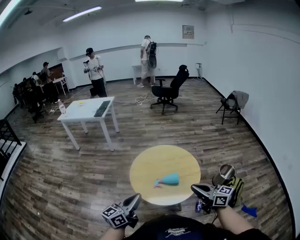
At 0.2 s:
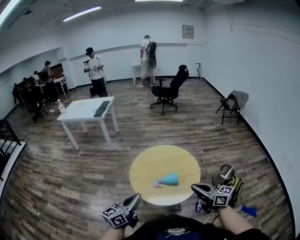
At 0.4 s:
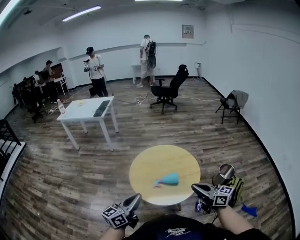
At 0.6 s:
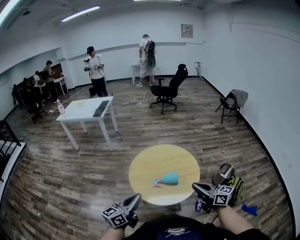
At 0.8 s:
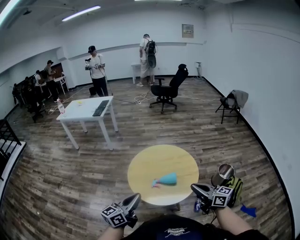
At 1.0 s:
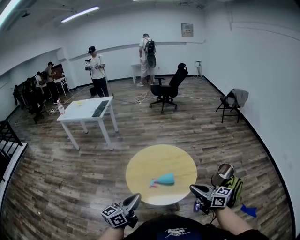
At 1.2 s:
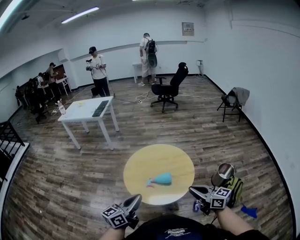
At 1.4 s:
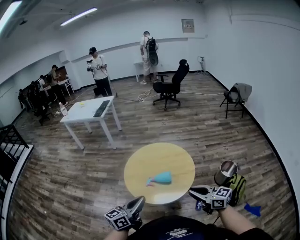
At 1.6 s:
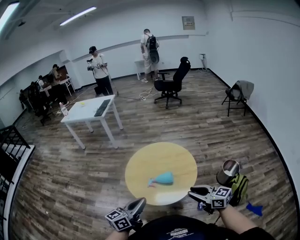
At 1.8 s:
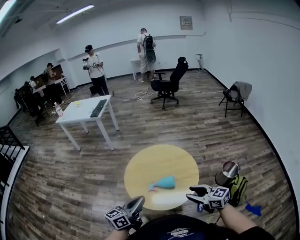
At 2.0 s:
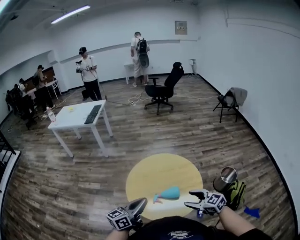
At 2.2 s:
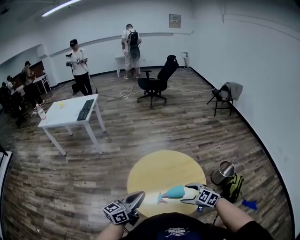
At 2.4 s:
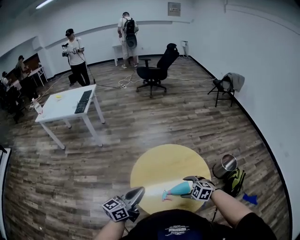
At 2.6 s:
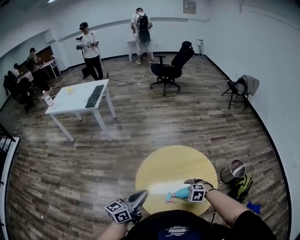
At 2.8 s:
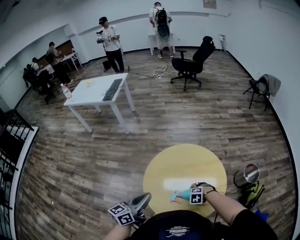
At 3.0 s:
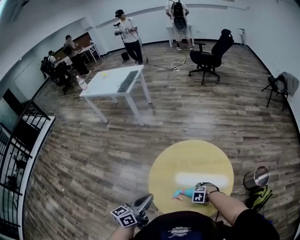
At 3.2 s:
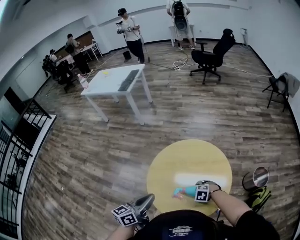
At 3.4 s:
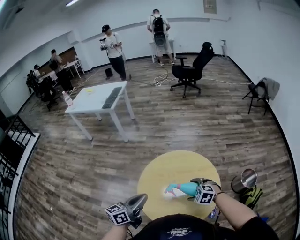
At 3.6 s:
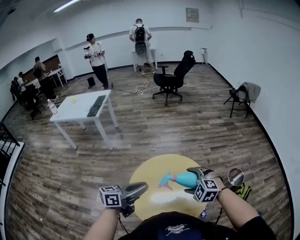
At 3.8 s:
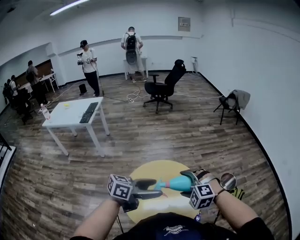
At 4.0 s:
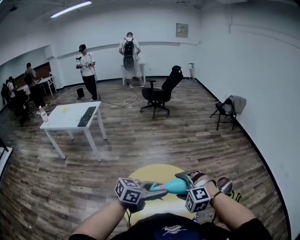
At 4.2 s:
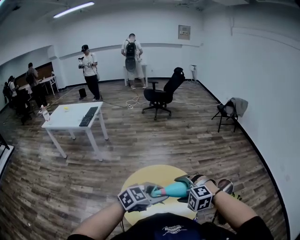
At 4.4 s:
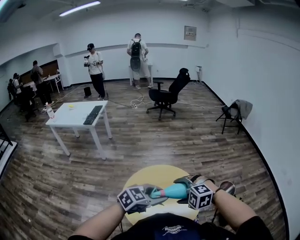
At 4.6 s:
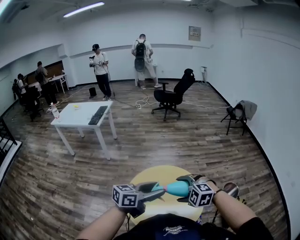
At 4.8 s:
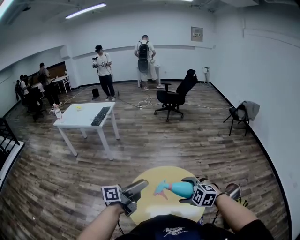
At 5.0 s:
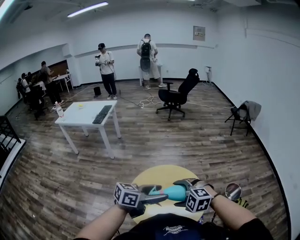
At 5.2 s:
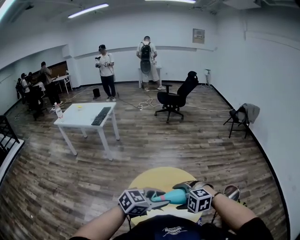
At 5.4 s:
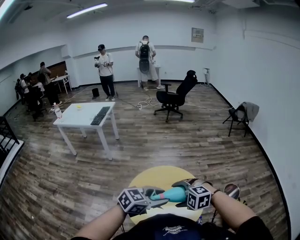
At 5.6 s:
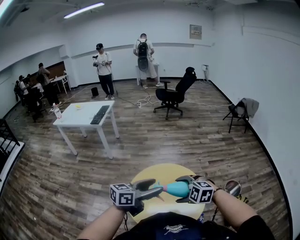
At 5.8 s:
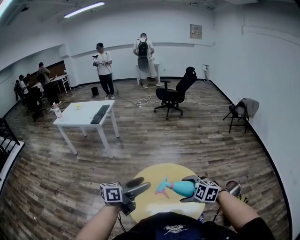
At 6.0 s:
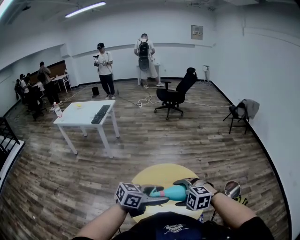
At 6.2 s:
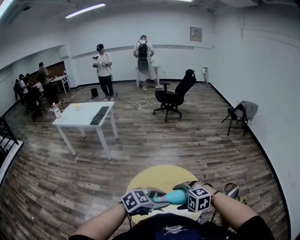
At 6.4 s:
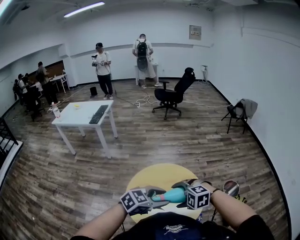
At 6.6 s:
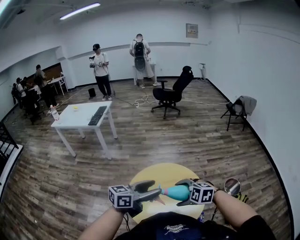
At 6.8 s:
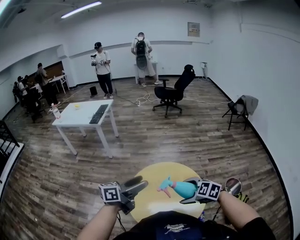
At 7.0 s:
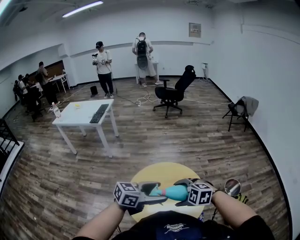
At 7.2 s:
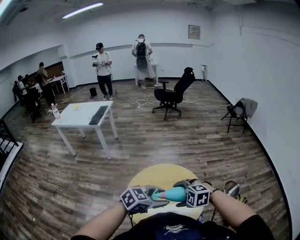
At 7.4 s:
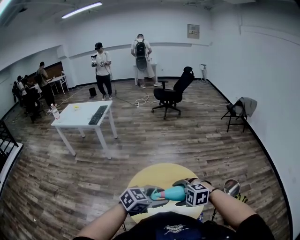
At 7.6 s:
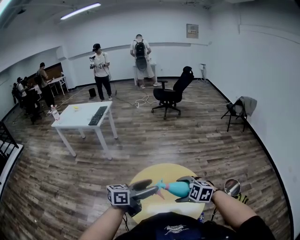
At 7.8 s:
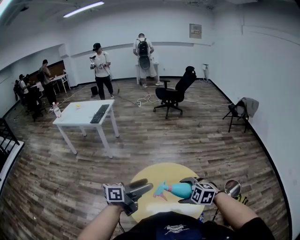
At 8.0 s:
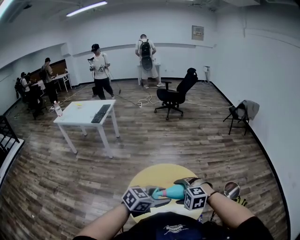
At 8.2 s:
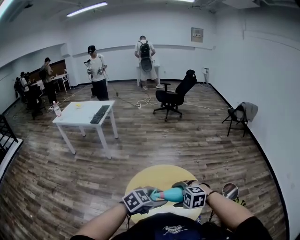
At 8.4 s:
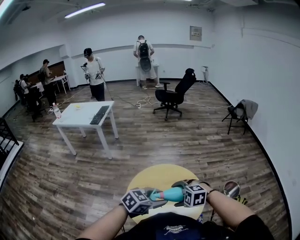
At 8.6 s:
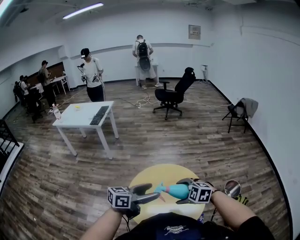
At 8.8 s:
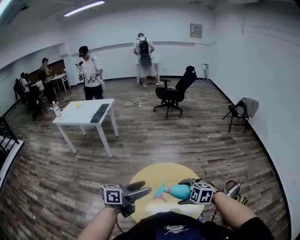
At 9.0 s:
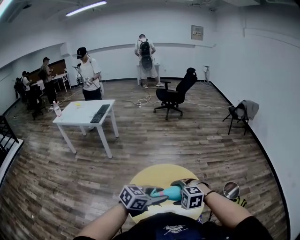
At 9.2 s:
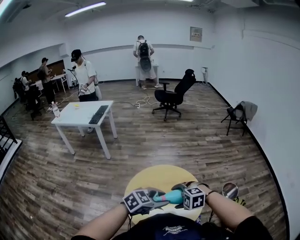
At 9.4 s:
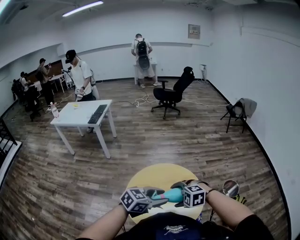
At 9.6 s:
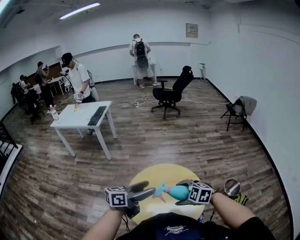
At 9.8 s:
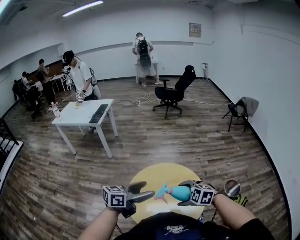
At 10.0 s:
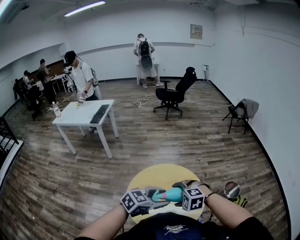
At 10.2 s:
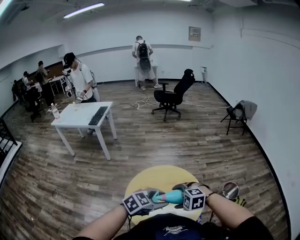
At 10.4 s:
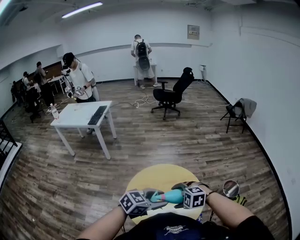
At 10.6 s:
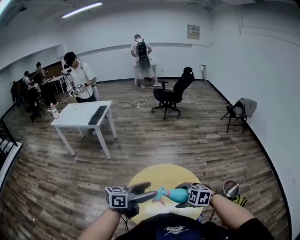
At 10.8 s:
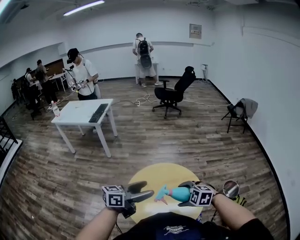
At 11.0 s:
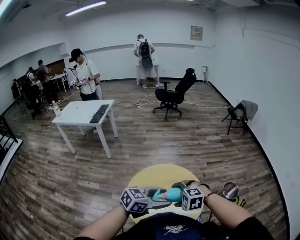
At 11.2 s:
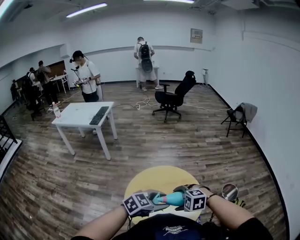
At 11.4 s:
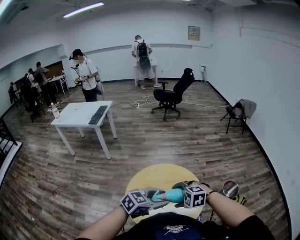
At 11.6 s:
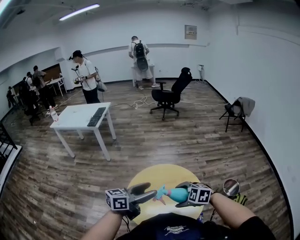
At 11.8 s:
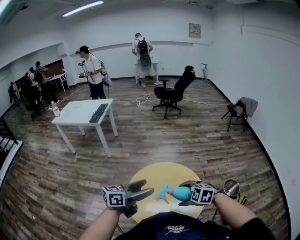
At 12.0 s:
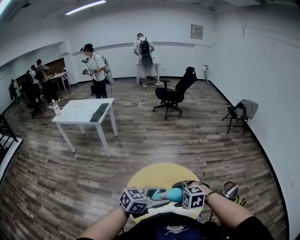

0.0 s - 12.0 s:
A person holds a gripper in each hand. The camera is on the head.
0.0 s - 1.6 s: Both grippers travel together to the right, some 10 cm.
1.6 s - 3.0 s: The right gripper shifts approximately 35 cm downward, points its fingers approximately 80 degrees further downward, and opens. Meanwhile the left gripper ends up about 25 cm from where it was.
3.0 s - 4.4 s: The right gripper shifts some 40 cm upward, and rotates some 40 degrees, while the left gripper shifts by roughly 20 cm, changes its angle by some 60 degrees, and opens its fingers.
4.4 s - 6.0 s: The left gripper swivels approximately 30 degrees, and opens up.
6.0 s - 7.6 s: The left gripper changes its angle by roughly 20 degrees.
7.6 s - 9.0 s: The left gripper ends up some 5 cm from where it was, and rotates some 30 degrees.
9.0 s - 10.4 s: The left gripper opens, then closes once more.
10.4 s - 12.0 s: The left gripper goes up and down, some 5 cm each way, reversing 2 times.

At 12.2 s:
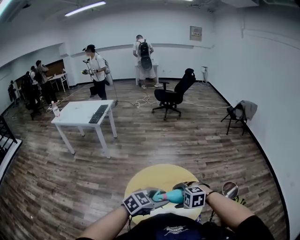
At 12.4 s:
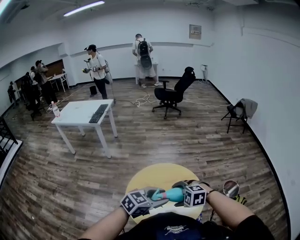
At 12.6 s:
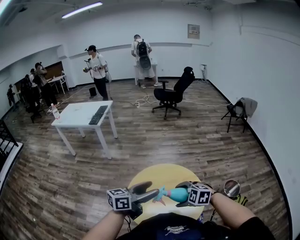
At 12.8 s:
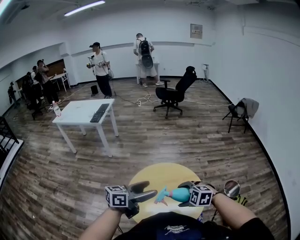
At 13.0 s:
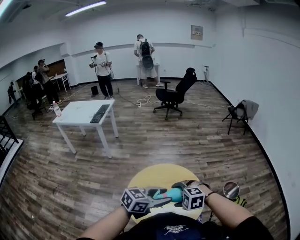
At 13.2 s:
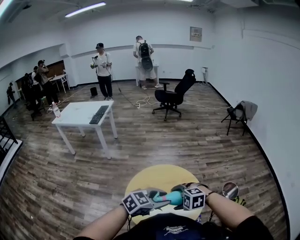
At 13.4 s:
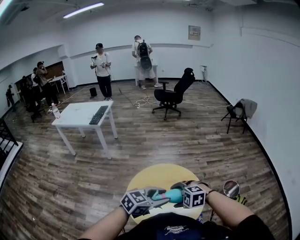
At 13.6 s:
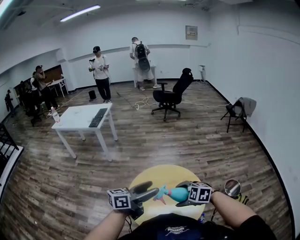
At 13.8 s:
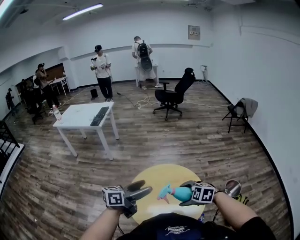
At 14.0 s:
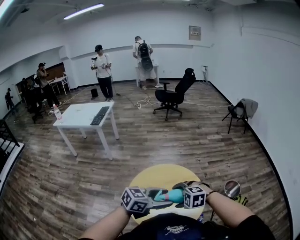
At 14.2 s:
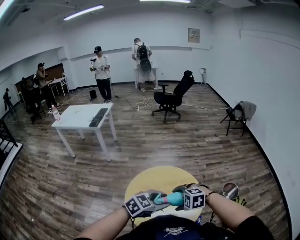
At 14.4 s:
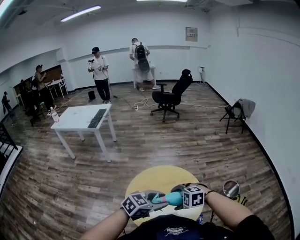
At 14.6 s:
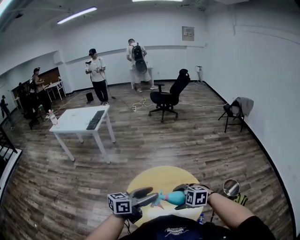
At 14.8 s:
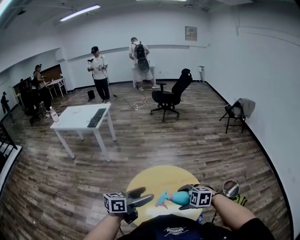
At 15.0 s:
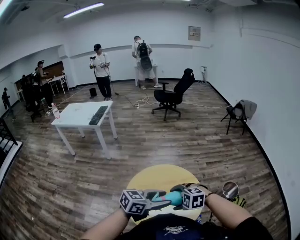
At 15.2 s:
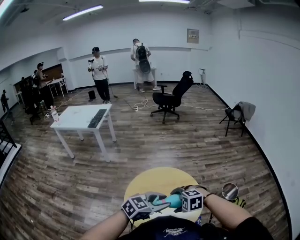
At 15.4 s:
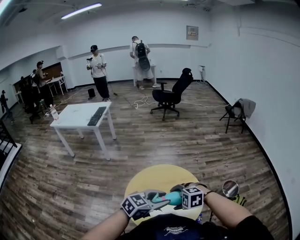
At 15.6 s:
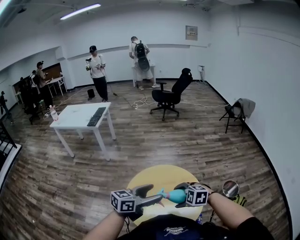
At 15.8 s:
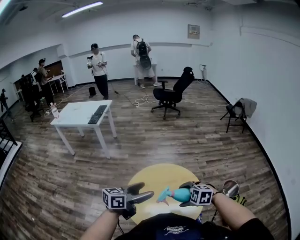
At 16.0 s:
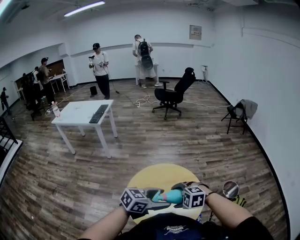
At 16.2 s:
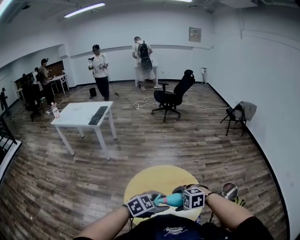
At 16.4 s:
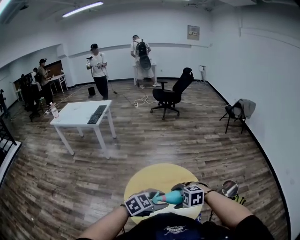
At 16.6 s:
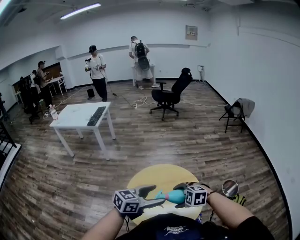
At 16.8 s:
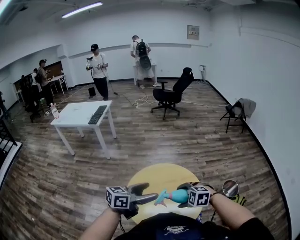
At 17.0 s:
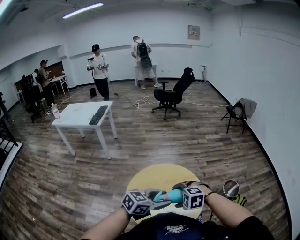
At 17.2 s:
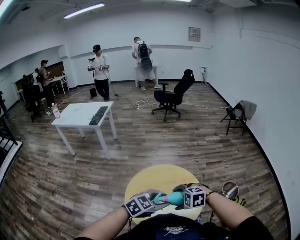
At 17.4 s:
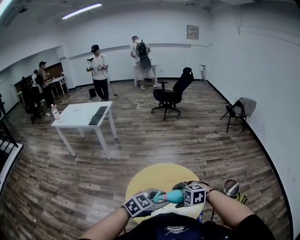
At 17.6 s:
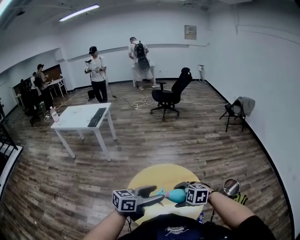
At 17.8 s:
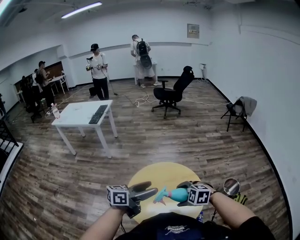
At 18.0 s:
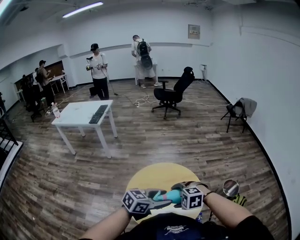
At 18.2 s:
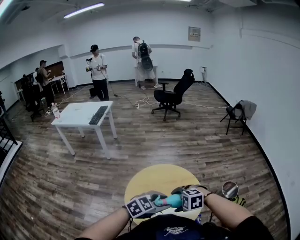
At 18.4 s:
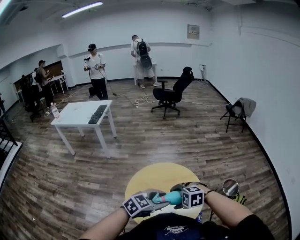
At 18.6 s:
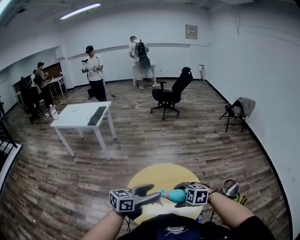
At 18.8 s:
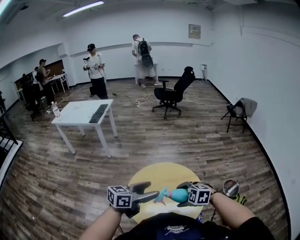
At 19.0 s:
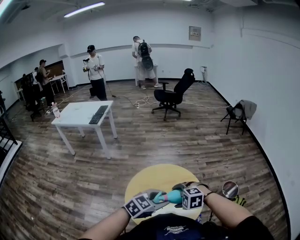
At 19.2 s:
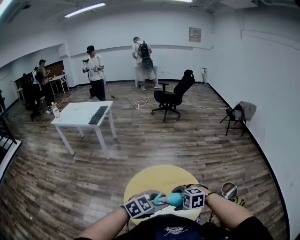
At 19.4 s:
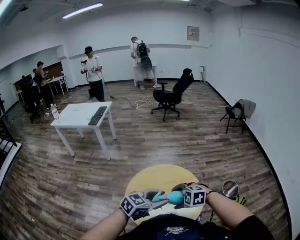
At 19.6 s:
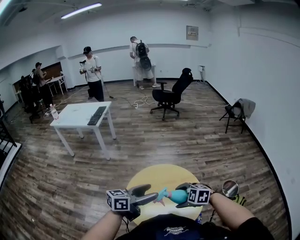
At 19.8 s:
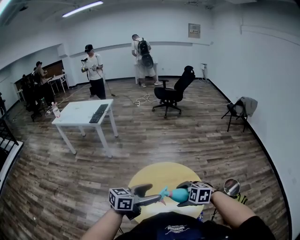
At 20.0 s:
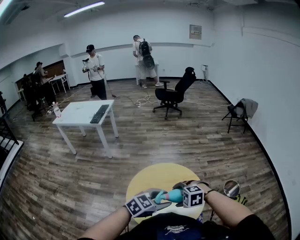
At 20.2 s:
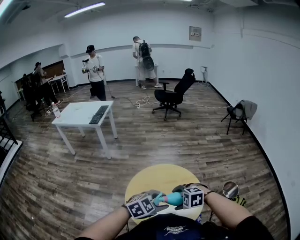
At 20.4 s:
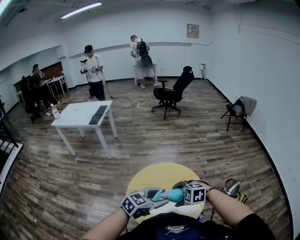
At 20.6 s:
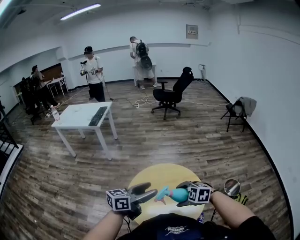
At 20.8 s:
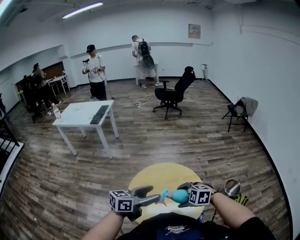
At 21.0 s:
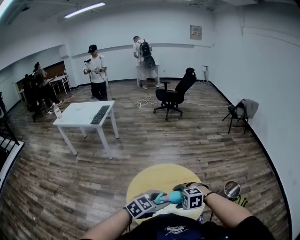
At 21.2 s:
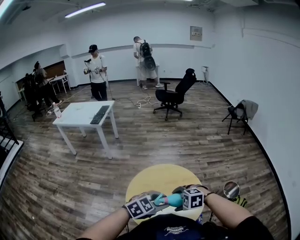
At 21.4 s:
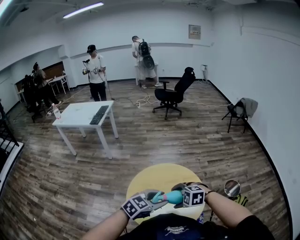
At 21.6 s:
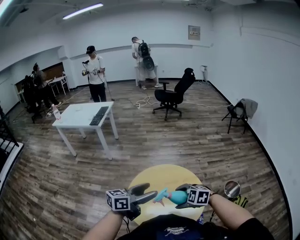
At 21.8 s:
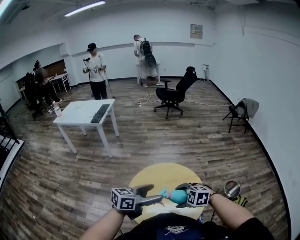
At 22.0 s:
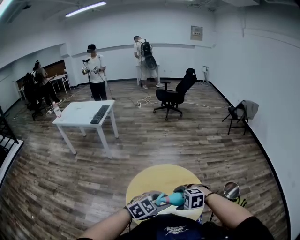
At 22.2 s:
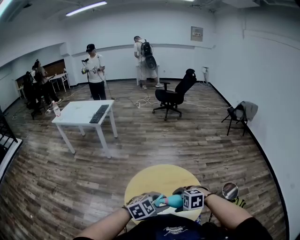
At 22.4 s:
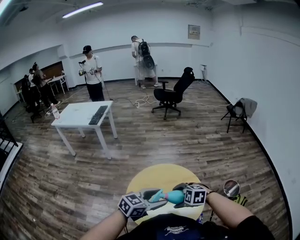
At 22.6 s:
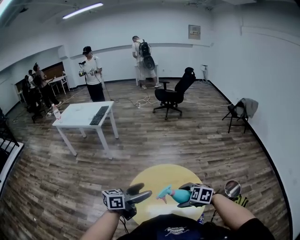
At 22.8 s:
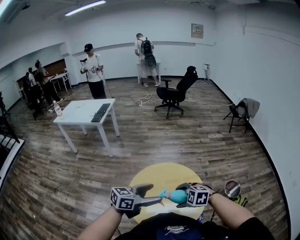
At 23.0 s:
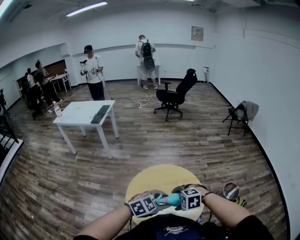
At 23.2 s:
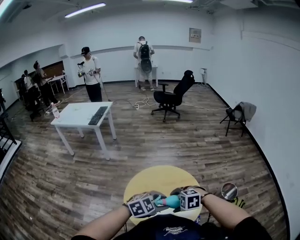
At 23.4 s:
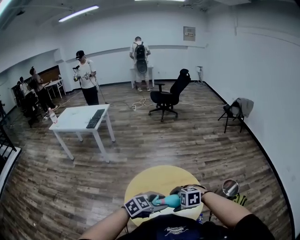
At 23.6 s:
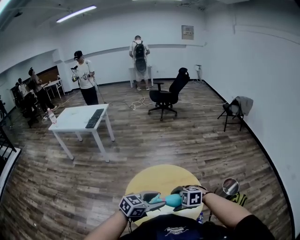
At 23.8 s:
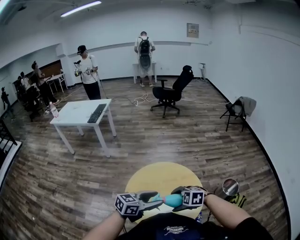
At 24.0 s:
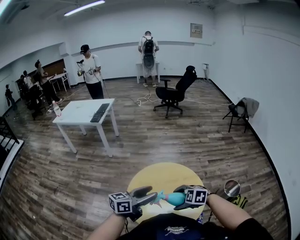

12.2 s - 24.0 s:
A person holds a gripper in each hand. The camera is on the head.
12.2 s - 13.6 s: The left gripper goes up and down, some 5 cm each way, reversing 2 times, tips its fingers upward by about 30 degrees, and opens up.
13.6 s - 15.2 s: The left gripper moves about 10 cm, rotates about 40 degrees, and closes.
15.2 s - 16.6 s: The left gripper opens up.
16.6 s - 18.2 s: The left gripper moves some 5 cm, swivels roughly 30 degrees, and closes its fingers.
18.2 s - 19.6 s: The left gripper swings up and down, about 5 cm each way, with 2 reversals, and points its fingers approximately 30 degrees further upward.
19.6 s - 21.0 s: The left gripper moves up and down over roughly 5 cm, changing direction 2 times, changes its angle by roughly 40 degrees, and closes.
21.0 s - 22.6 s: The right gripper turns by about 20 degrees. Meanwhile the left gripper swings up and down, roughly 5 cm each way, with 2 reversals, changes its angle by some 50 degrees, and opens.
